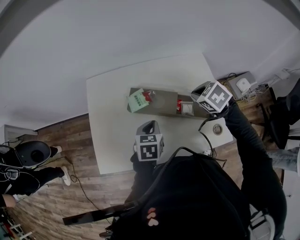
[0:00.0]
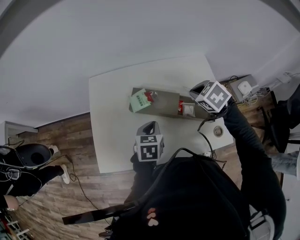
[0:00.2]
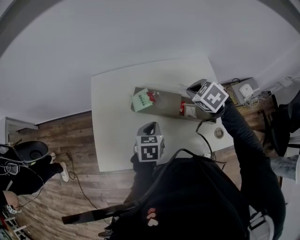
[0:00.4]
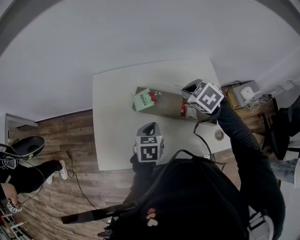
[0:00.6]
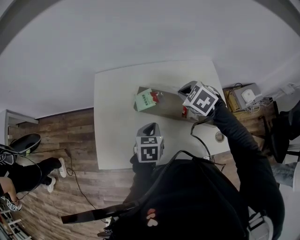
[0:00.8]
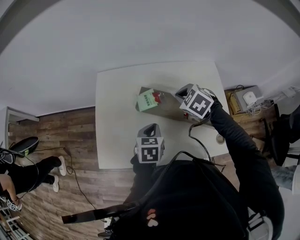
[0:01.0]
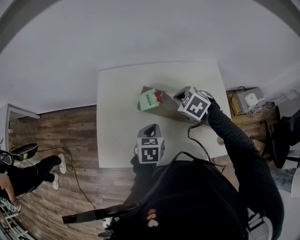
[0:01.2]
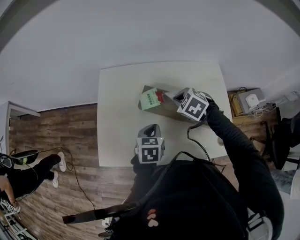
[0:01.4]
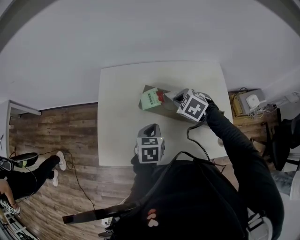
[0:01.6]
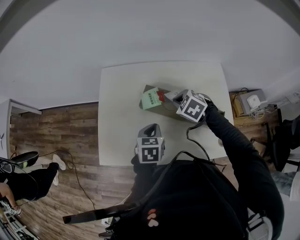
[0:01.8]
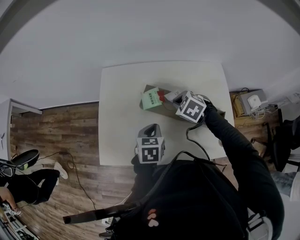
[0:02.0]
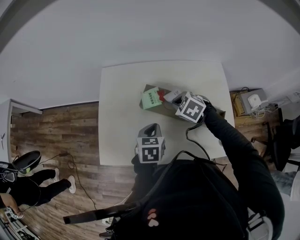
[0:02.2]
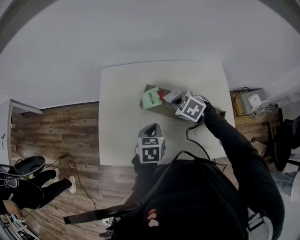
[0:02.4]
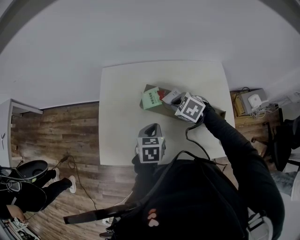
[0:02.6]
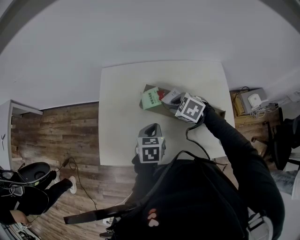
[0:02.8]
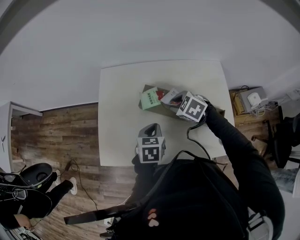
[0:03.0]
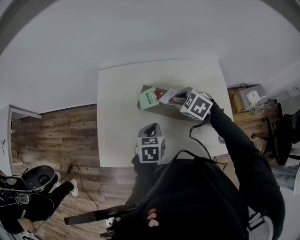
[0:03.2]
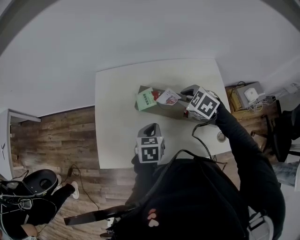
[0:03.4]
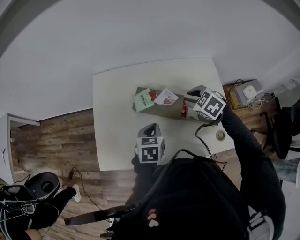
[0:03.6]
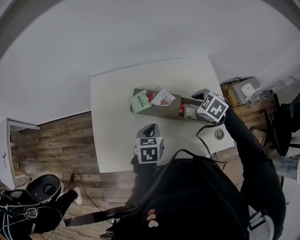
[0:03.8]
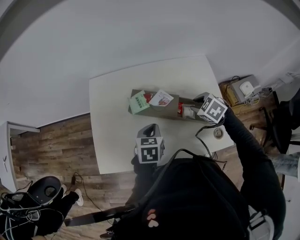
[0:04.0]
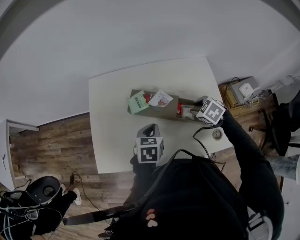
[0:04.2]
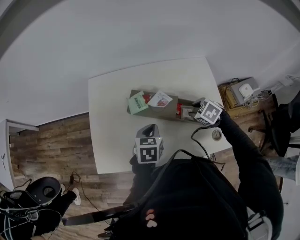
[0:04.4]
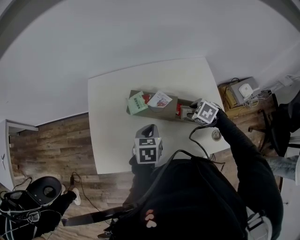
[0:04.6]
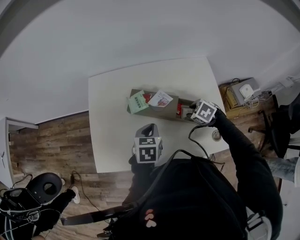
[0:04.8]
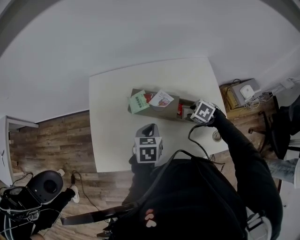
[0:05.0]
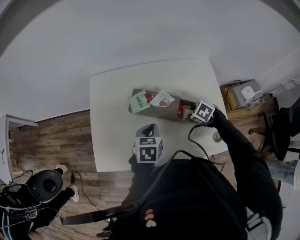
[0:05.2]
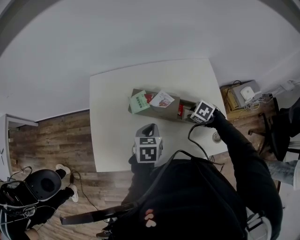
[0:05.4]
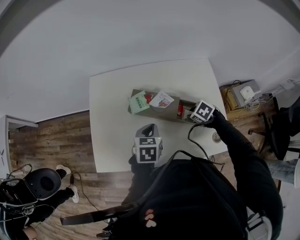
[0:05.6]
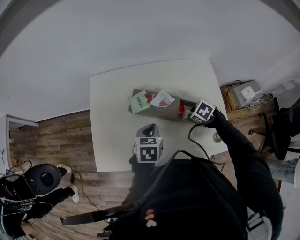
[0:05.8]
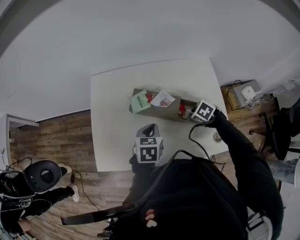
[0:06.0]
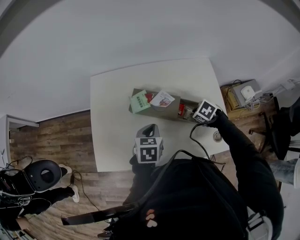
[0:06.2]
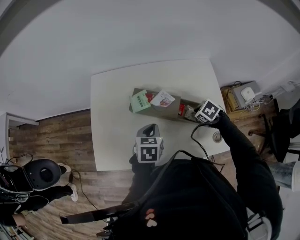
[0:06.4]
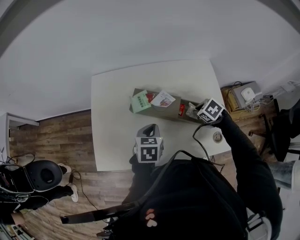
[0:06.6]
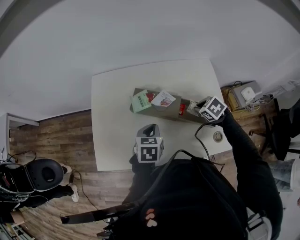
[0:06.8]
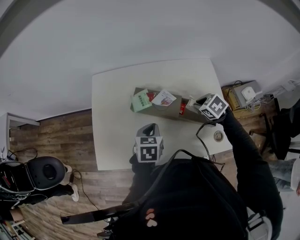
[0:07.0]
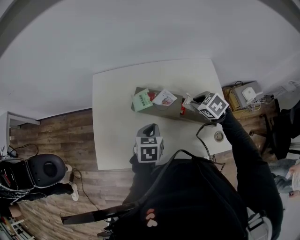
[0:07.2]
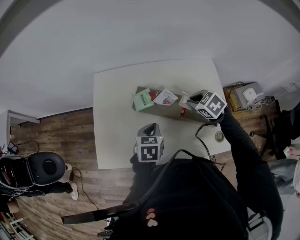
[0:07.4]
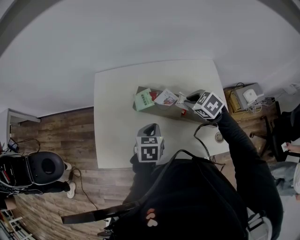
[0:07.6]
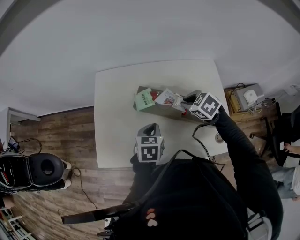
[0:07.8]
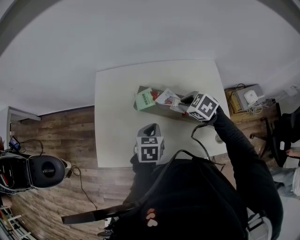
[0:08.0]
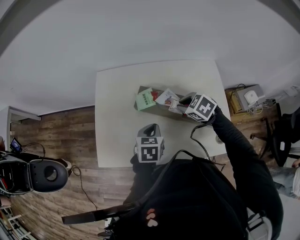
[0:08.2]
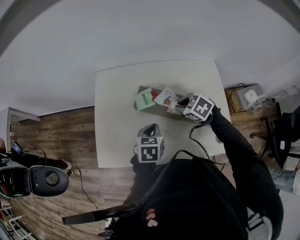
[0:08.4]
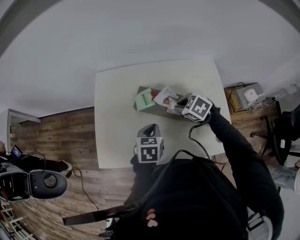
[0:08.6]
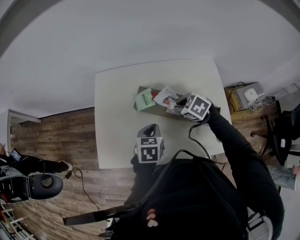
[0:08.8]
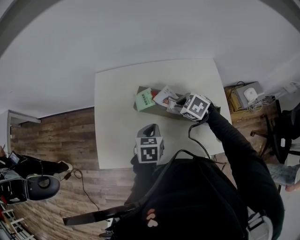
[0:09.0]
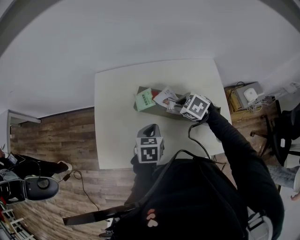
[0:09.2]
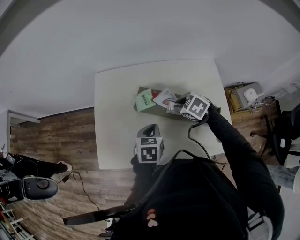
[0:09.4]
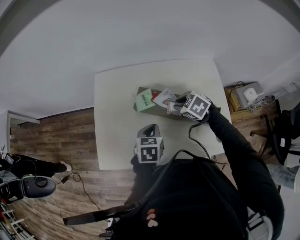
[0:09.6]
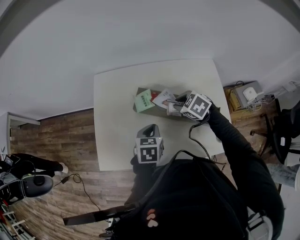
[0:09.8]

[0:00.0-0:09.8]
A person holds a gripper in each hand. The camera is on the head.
0:00.0 to 0:01.4: The right gripper shifts some 10 cm to the left.
0:01.4 to 0:02.8: The right gripper opens.
0:02.8 to 0:04.2: The right gripper travels to the right and backward by about 15 cm.
0:04.2 to 0:05.6: The right gripper shifts some 5 cm downward.
0:05.6 to 0:07.0: The right gripper heads upward, covering some 5 cm.
0:07.0 to 0:08.4: The right gripper goes some 10 cm to the left.
0:08.4 to 0:09.8: The grippers move only a little.

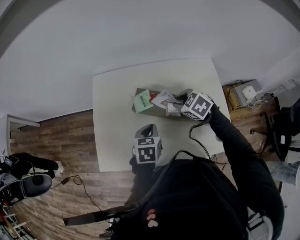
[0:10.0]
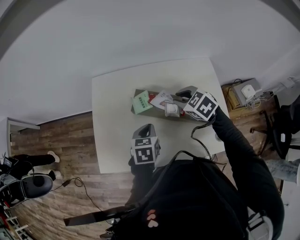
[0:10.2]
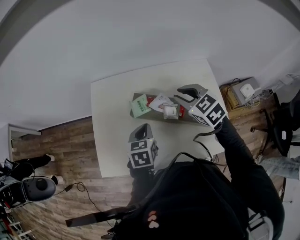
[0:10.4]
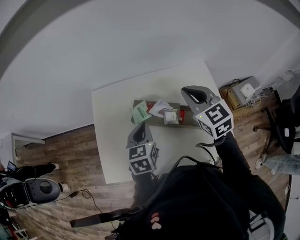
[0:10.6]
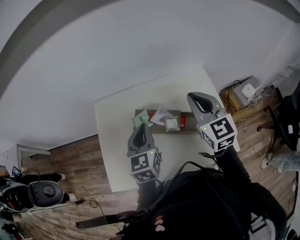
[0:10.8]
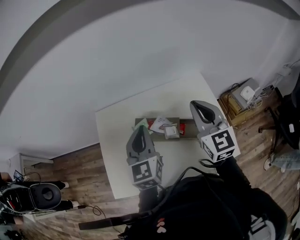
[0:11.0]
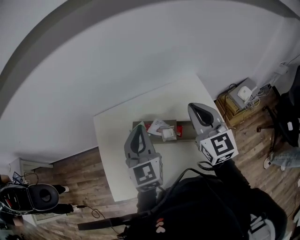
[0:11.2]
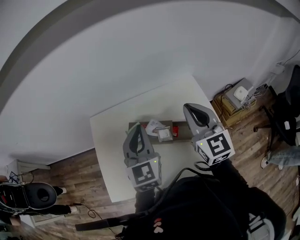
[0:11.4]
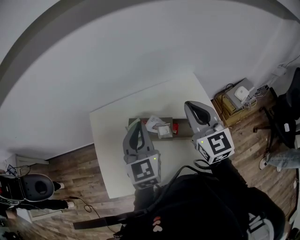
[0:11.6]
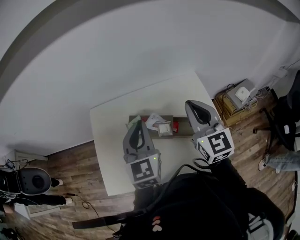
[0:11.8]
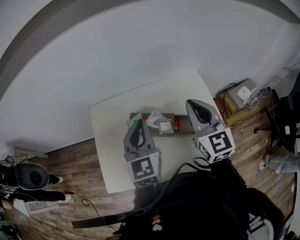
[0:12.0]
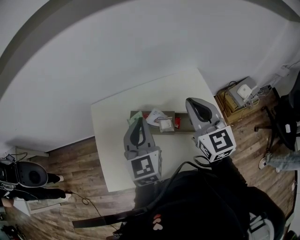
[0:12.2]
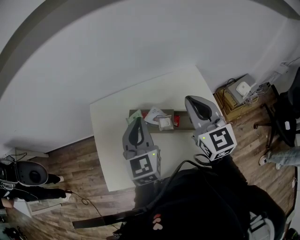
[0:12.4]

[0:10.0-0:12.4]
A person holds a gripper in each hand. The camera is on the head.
0:10.0 to 0:11.2: The two grippers go approximately 25 cm upward. The right gripper tilts its fingers some 50 degrees upward, and closes up. The left gripper points its fingers roughly 40 degrees further upward.
0:11.2 to 0:12.4: There are only small adjustments of the grippers.

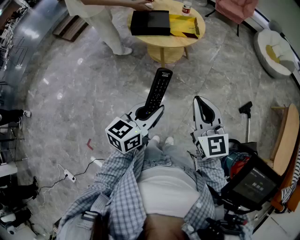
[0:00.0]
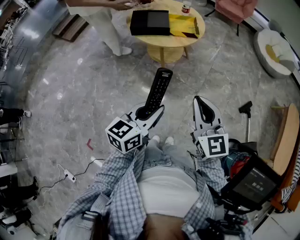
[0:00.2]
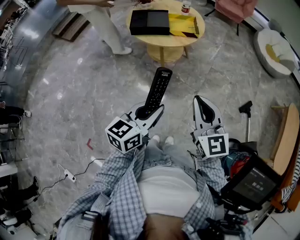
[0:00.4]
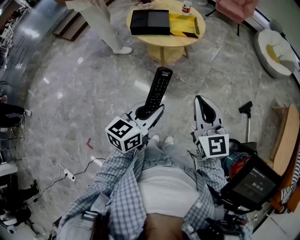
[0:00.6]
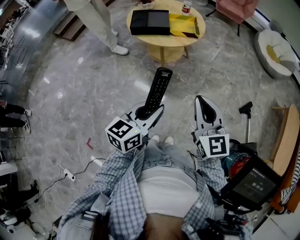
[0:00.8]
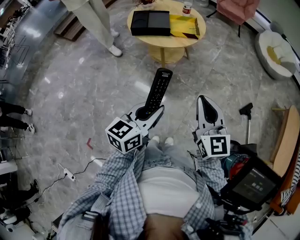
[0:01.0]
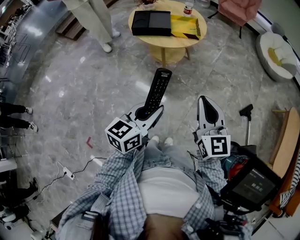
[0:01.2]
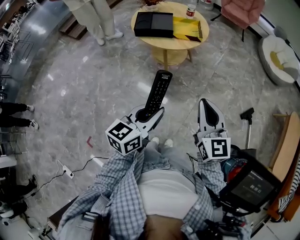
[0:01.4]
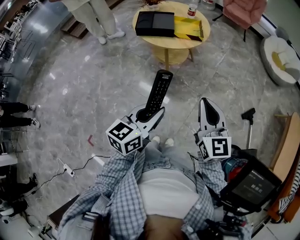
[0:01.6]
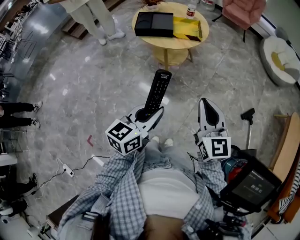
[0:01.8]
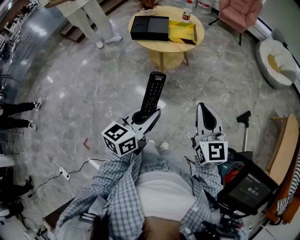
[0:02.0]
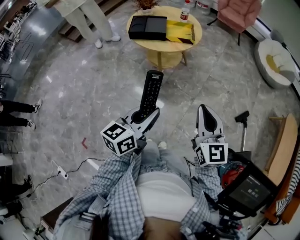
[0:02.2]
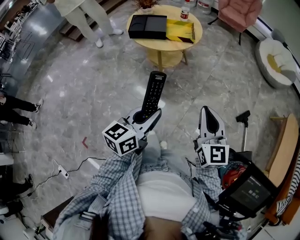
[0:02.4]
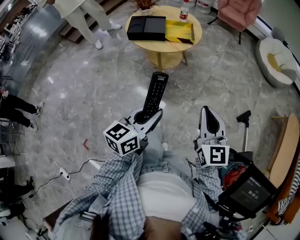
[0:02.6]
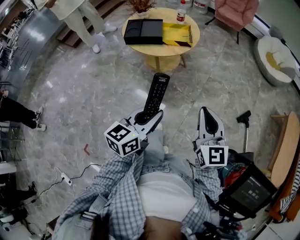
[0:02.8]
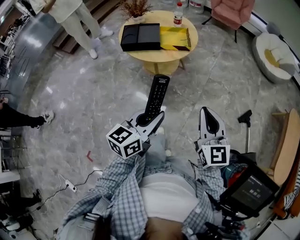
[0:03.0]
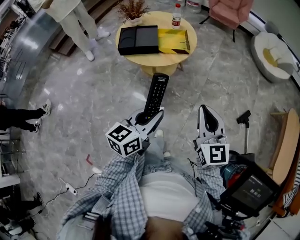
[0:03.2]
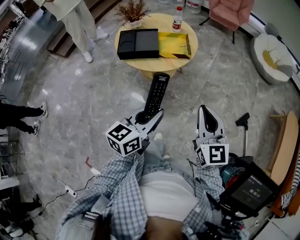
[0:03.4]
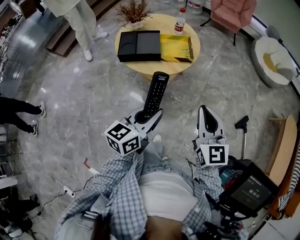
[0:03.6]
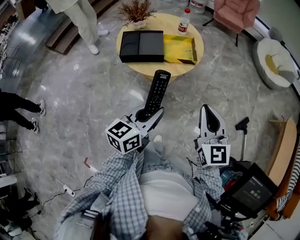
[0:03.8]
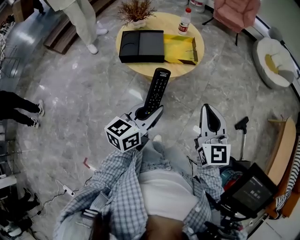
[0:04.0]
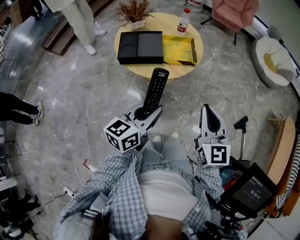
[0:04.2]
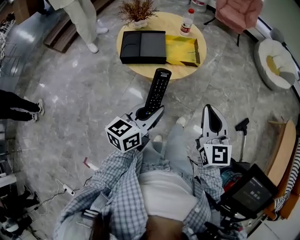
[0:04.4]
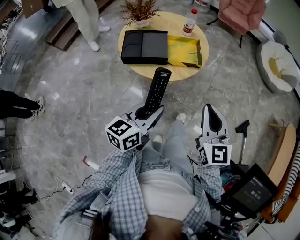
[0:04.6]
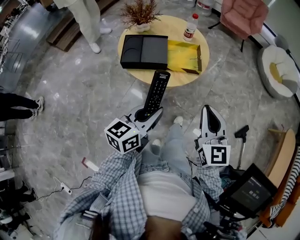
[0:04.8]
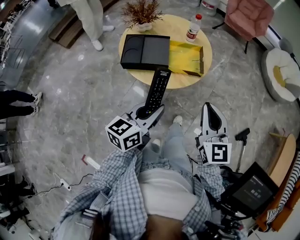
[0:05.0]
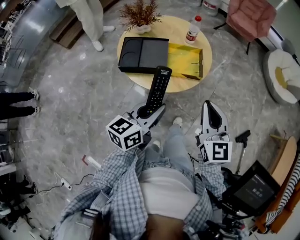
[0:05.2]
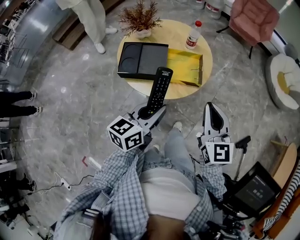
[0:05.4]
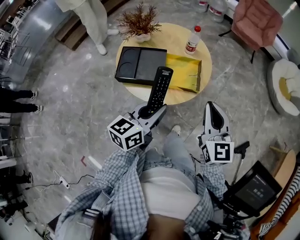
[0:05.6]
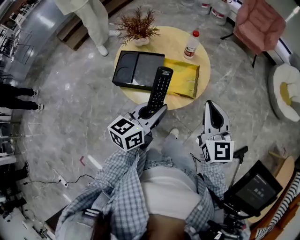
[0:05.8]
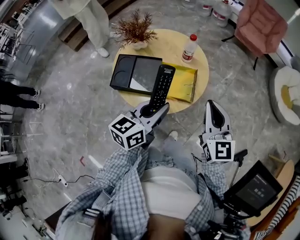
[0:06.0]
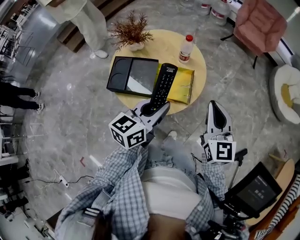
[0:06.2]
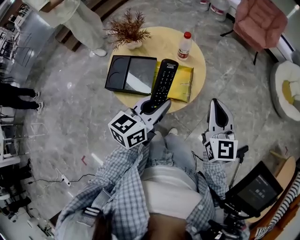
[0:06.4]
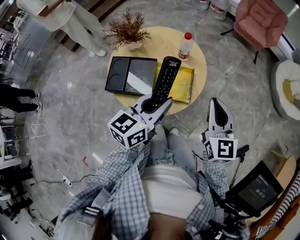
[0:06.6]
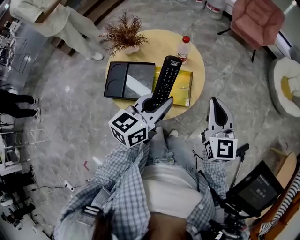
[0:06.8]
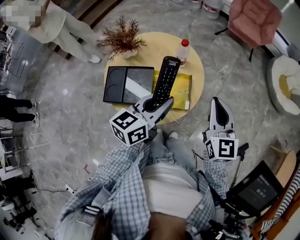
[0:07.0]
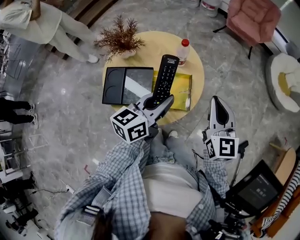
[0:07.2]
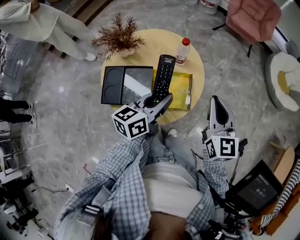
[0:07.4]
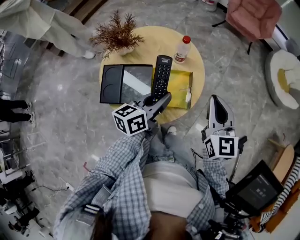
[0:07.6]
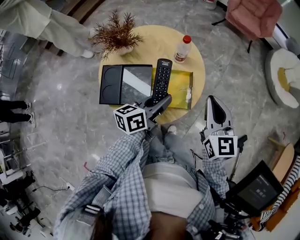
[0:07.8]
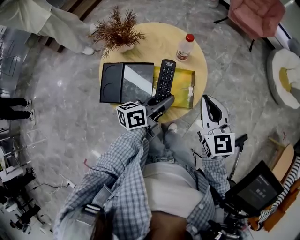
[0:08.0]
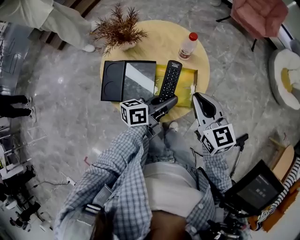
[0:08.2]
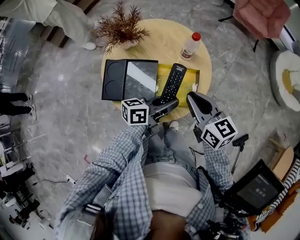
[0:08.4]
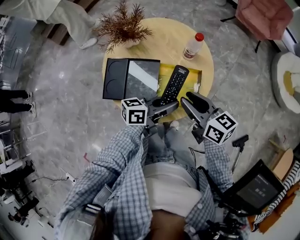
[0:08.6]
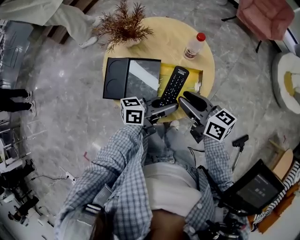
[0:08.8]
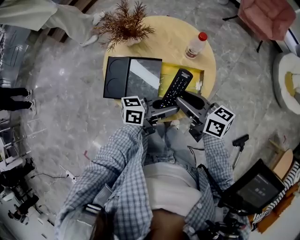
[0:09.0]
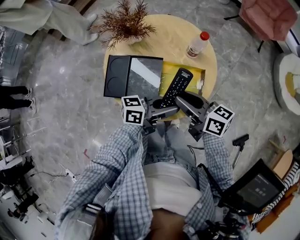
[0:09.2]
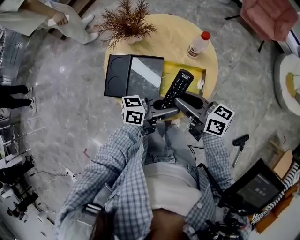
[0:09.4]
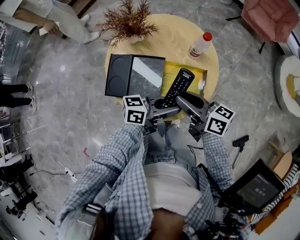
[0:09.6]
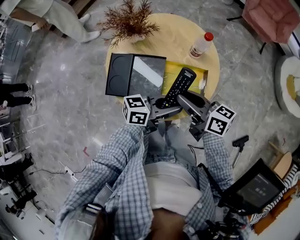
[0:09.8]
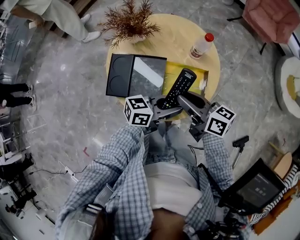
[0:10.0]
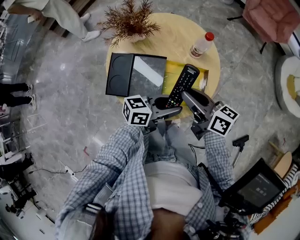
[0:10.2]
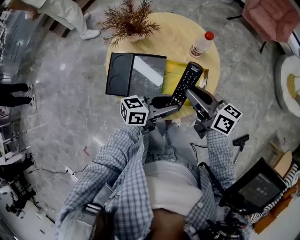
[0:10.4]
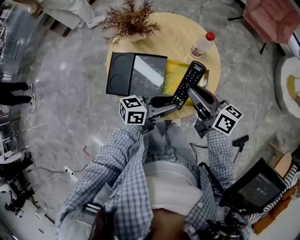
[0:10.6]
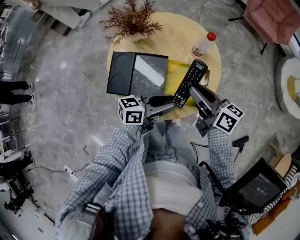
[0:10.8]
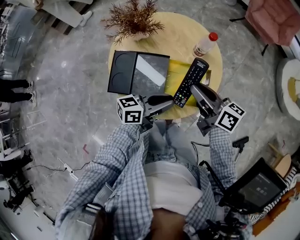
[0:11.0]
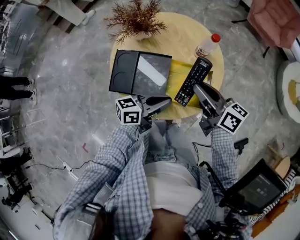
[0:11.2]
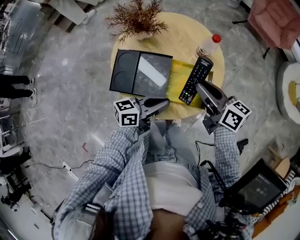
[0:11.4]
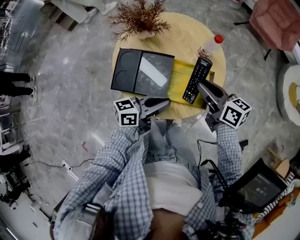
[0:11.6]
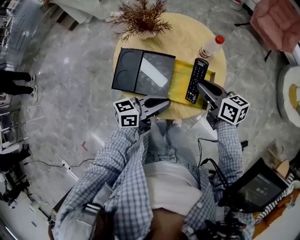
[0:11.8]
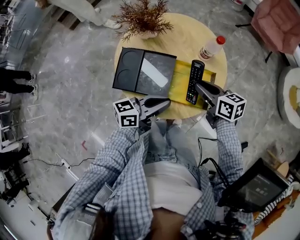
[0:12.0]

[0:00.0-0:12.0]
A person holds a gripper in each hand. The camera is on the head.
0:00.0 to 0:01.6: The grippers make only small movements.
0:01.6 to 0:03.0: The left gripper is displaced forward by approximately 5 cm; the right gripper changes place by some 5 cm.
0:03.0 to 0:04.4: The two grippers go some 20 cm forward and to the left.
0:04.4 to 0:06.0: Both grippers travel together forward, roughly 25 cm.
0:06.0 to 0:07.6: The left gripper heads forward and downward, covering about 15 cm. Meanwhile the right gripper shifts approximately 10 cm forward.
0:07.6 to 0:09.0: The right gripper ends up approximately 15 cm from where it was, turns by about 60 degrees, and opens, while the left gripper moves about 5 cm, and turns by some 30 degrees.
0:09.0 to 0:10.4: There are only small adjustments of the grippers.
0:10.4 to 0:12.0: The right gripper heads downward, covering about 5 cm, and turns by roughly 20 degrees. The left gripper travels to the left by approximately 5 cm, and closes its fingers.
